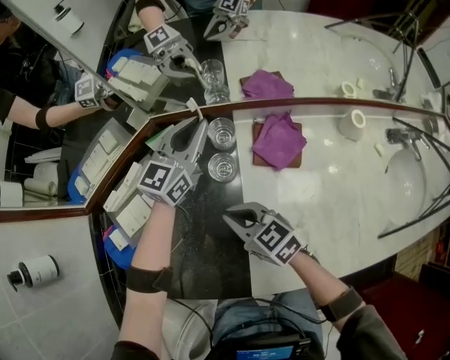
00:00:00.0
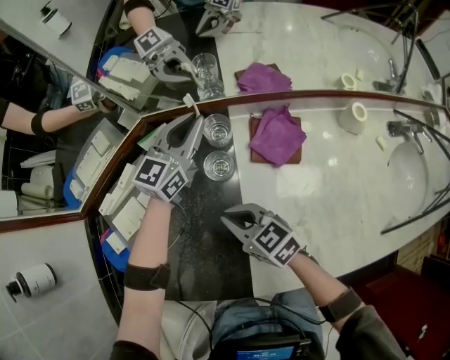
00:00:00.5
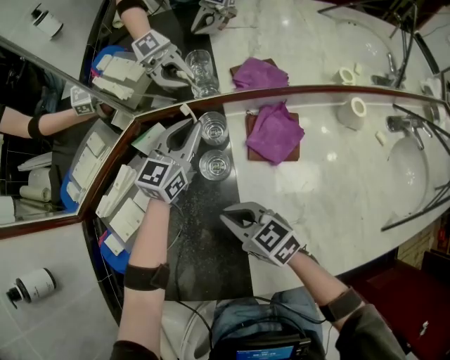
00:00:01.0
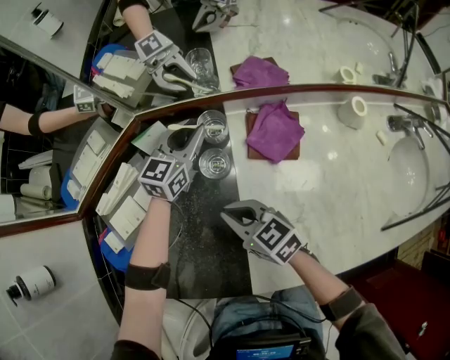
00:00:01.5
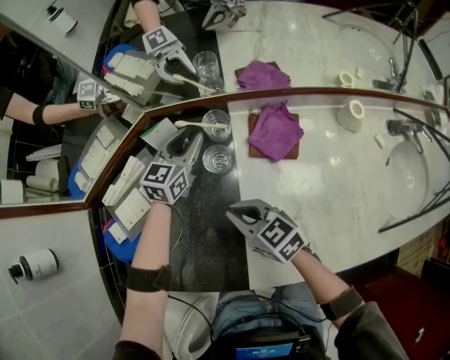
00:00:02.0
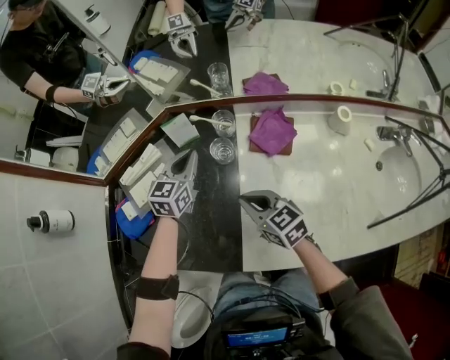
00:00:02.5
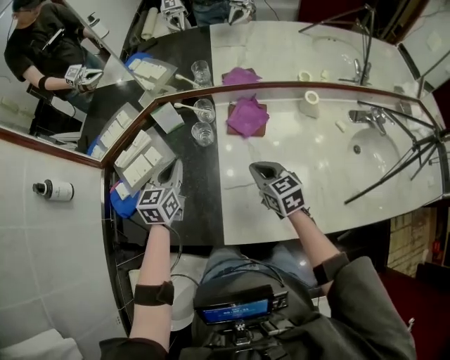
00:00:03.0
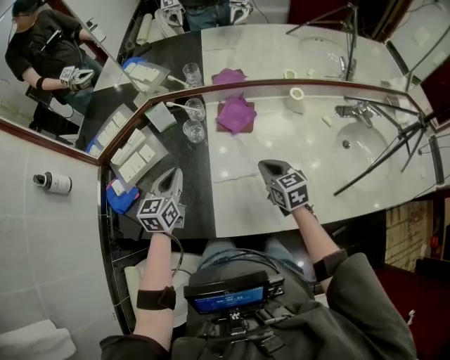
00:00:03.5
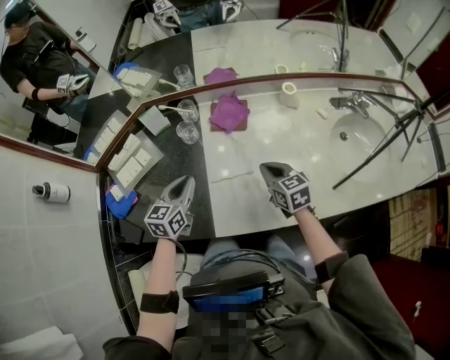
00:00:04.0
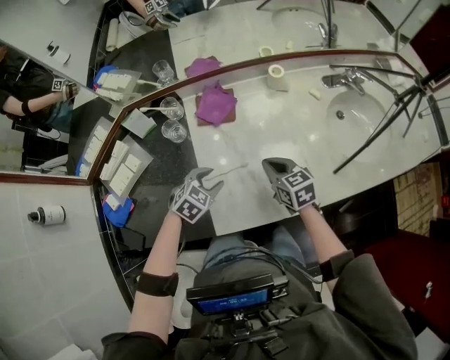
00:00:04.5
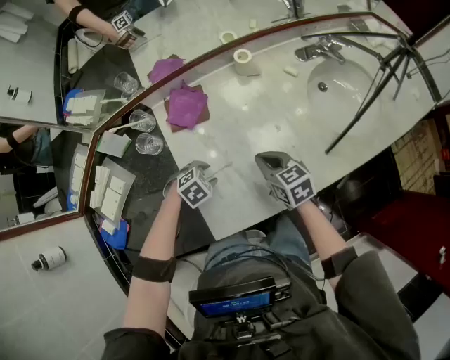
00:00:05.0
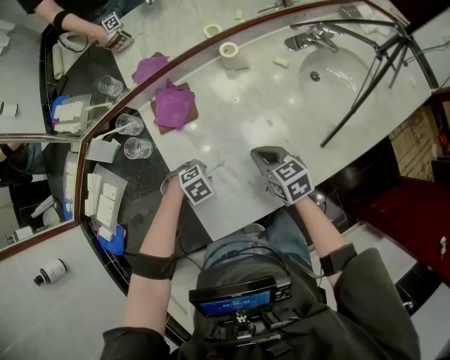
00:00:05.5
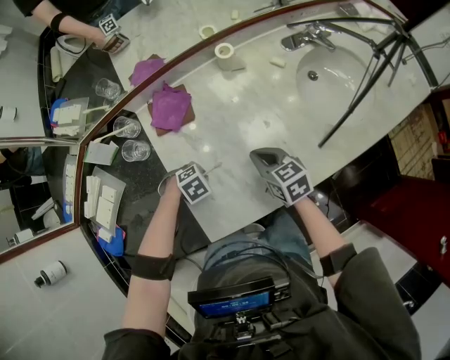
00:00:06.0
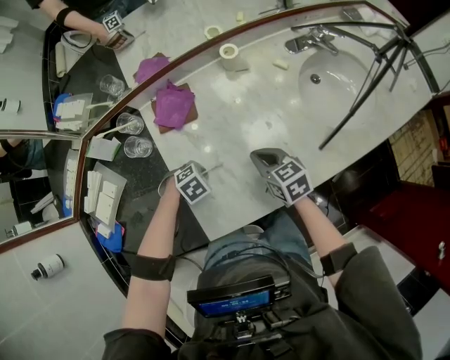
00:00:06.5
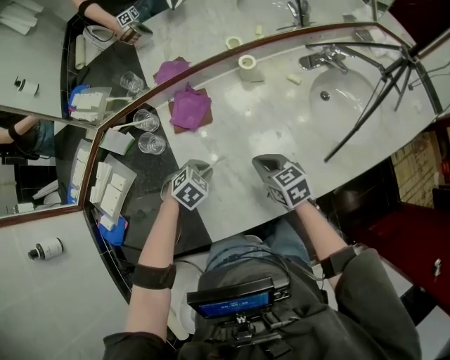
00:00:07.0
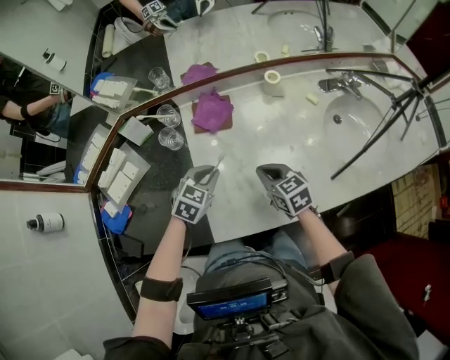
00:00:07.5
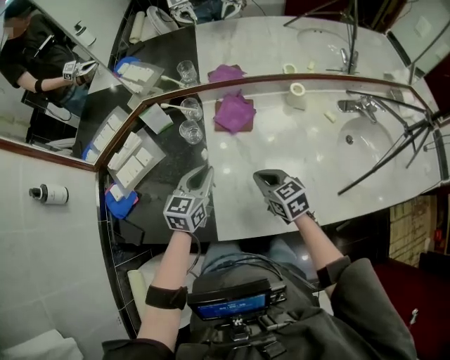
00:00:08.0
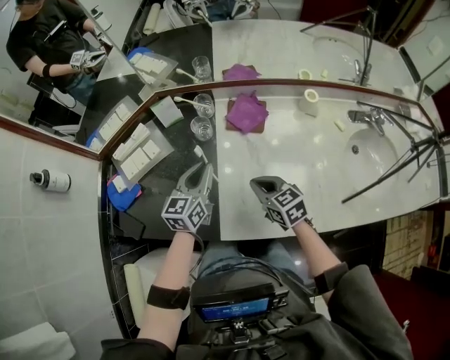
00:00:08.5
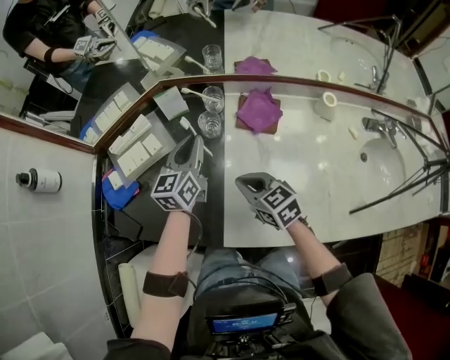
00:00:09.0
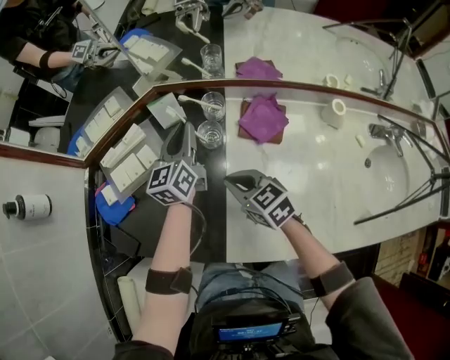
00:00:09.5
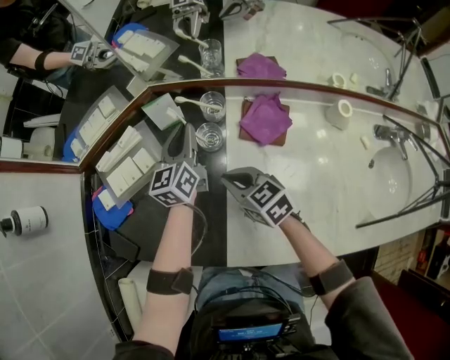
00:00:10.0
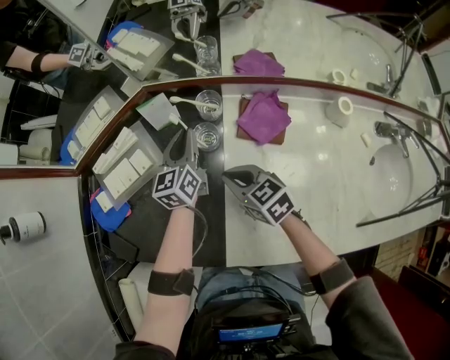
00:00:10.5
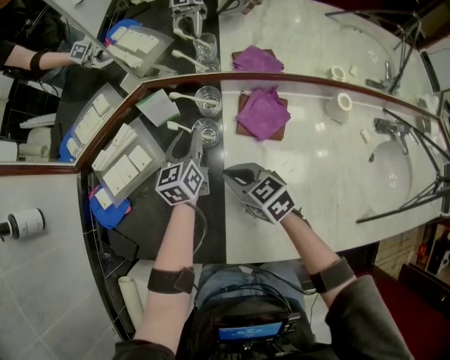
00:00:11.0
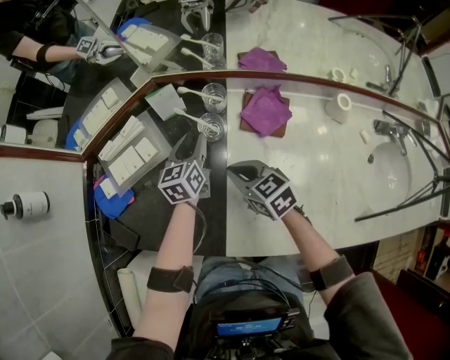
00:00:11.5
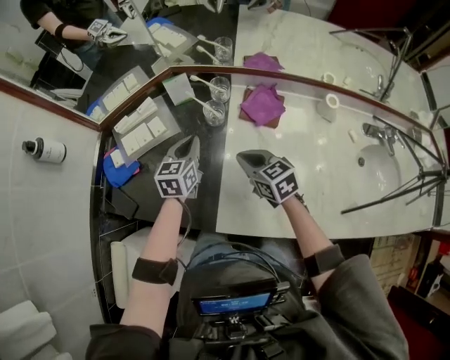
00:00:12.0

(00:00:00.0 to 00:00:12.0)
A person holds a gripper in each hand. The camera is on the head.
00:00:00.0 - 00:00:02.0: The left gripper is displaced downward by some 10 cm, and opens up.
00:00:02.0 - 00:00:04.0: The right gripper heads to the right and backward, covering approximately 25 cm, and changes its angle by roughly 30 degrees. The left gripper heads backward, covering some 30 cm, and closes.
00:00:04.0 - 00:00:06.0: The right gripper shifts by about 10 cm. The left gripper heads downward, covering some 20 cm, tilts its fingers approximately 50 degrees downward, and opens, then closes again.
00:00:06.0 - 00:00:08.0: The left gripper is displaced upward by roughly 20 cm, and angles its fingers upward, by roughly 50 degrees. Meanwhile the right gripper ends up some 15 cm from where it was, and swivels about 20 degrees.
00:00:08.0 - 00:00:10.0: The right gripper travels forward and to the left by roughly 20 cm. Meanwhile the left gripper goes approximately 25 cm forward, and changes its angle by some 30 degrees.
00:00:10.0 - 00:00:12.0: The right gripper shifts some 5 cm backward, while the left gripper goes about 15 cm backward, swivels about 20 degrees, and opens and closes again.

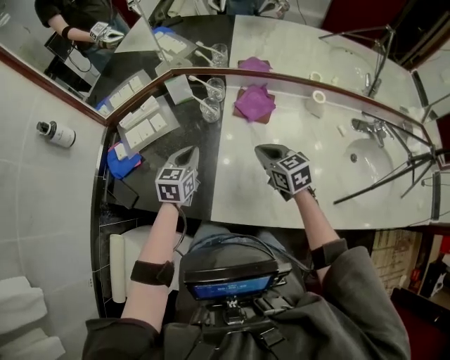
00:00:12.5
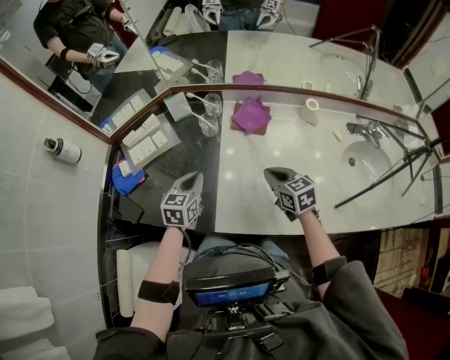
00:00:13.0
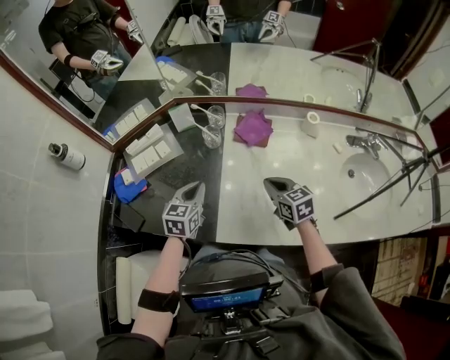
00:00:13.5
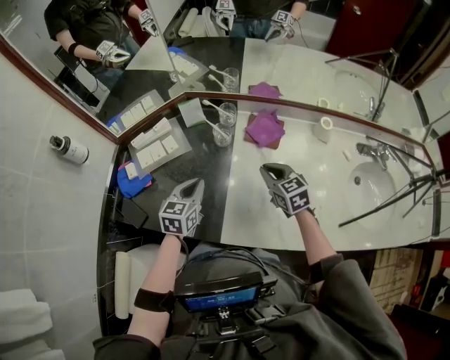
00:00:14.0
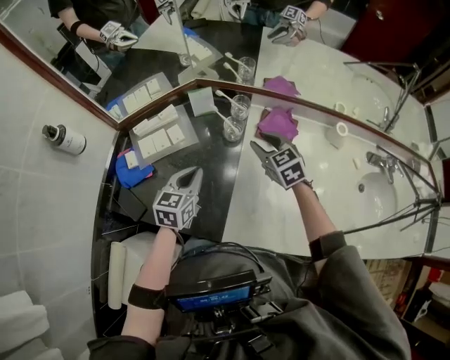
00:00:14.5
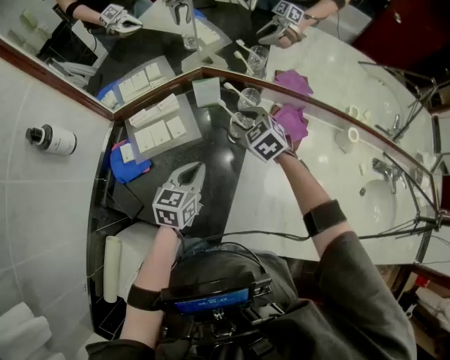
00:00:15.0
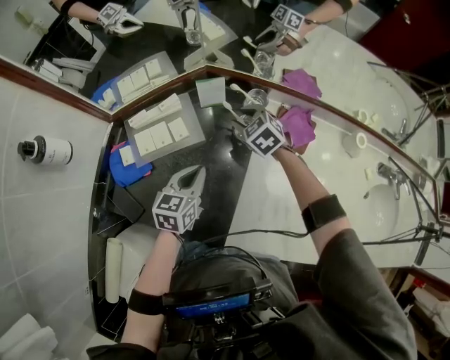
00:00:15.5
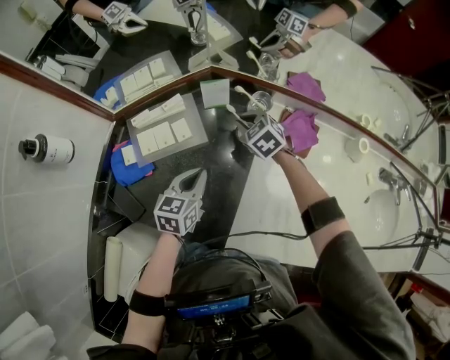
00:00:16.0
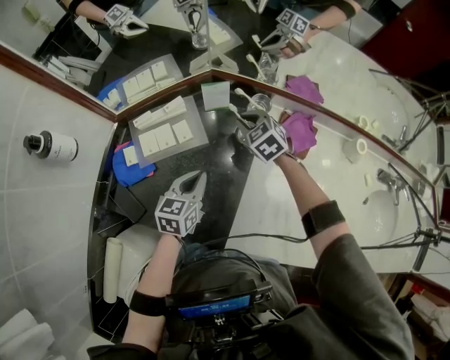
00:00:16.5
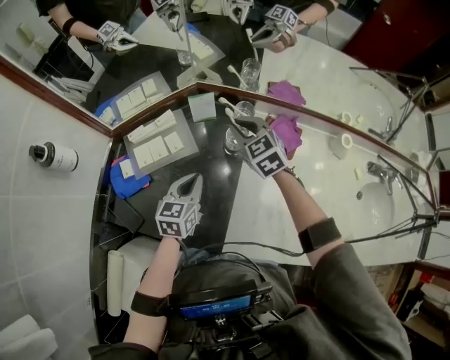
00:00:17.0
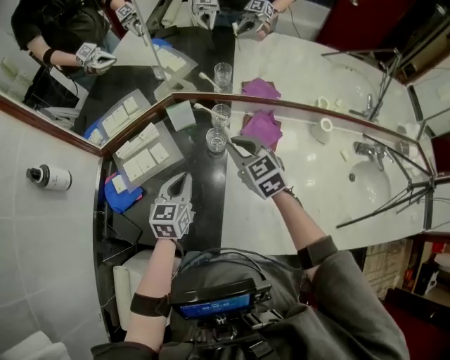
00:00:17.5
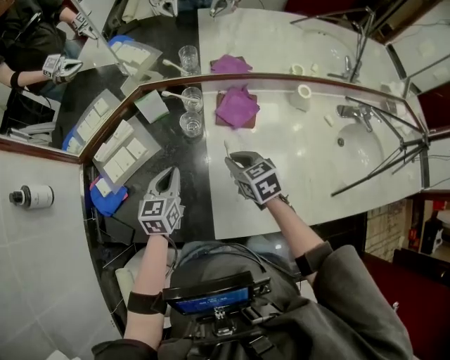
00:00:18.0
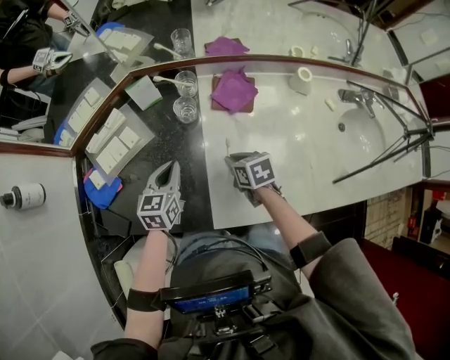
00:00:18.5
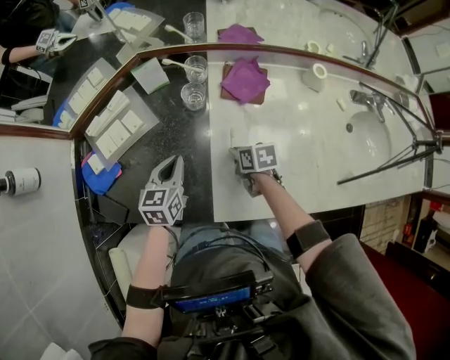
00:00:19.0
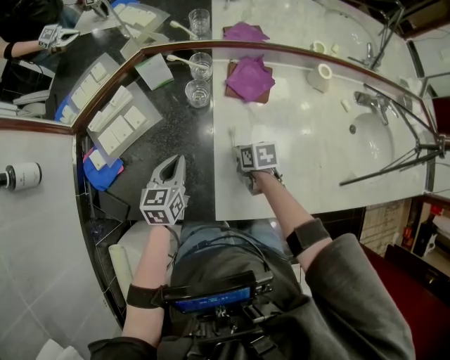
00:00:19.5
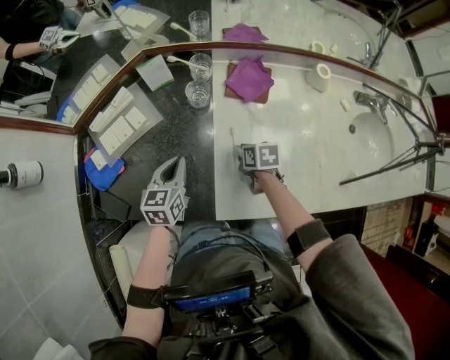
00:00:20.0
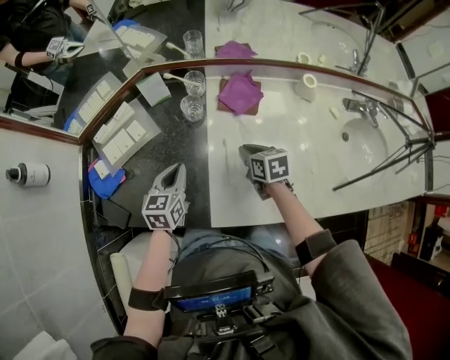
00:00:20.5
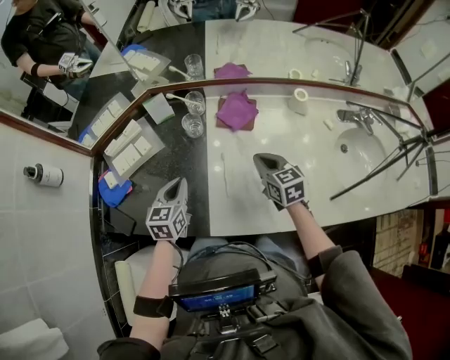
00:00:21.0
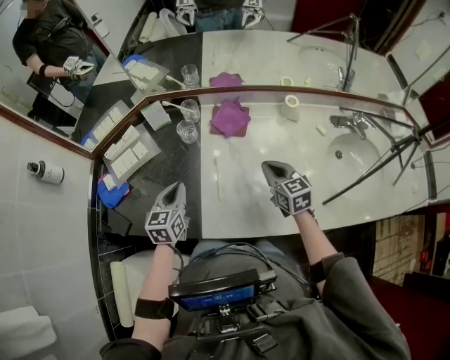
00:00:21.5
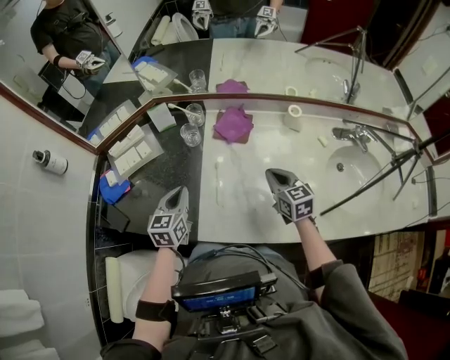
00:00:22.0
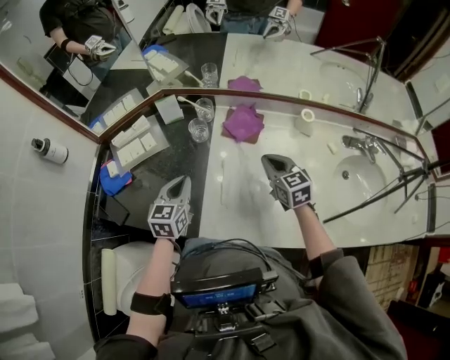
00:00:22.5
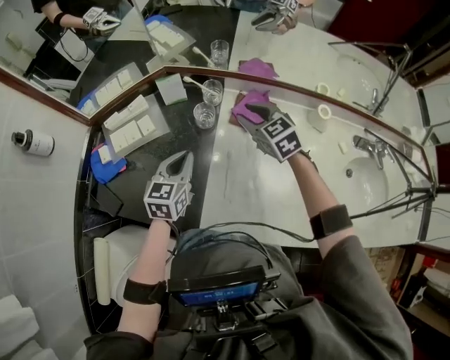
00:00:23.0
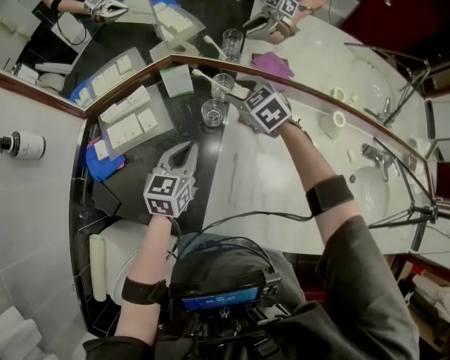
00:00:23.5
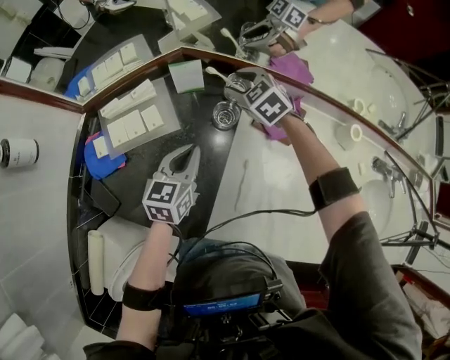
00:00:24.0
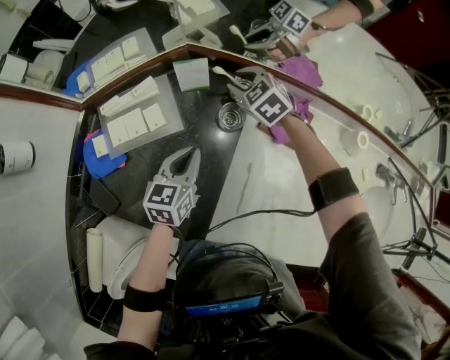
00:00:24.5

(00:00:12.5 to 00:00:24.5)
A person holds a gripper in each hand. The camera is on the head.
00:00:12.5 - 00:00:14.5: The left gripper heads to the left, covering some 5 cm; the right gripper heads forward and to the left, covering roughly 15 cm, and opens.
00:00:14.5 - 00:00:16.5: The left gripper moves downward, about 5 cm, while the right gripper goes approximately 15 cm forward, to the left and downward, and closes up.
00:00:16.5 - 00:00:18.5: The left gripper shifts approximately 5 cm to the right; the right gripper moves backward and to the right, about 25 cm, and twists roughly 50 degrees clockwise, seen from behind.
00:00:18.5 - 00:00:20.5: The right gripper moves roughly 5 cm downward and comes back.
00:00:20.5 - 00:00:22.5: The left gripper moves upward, approximately 5 cm, while the right gripper is displaced upward and to the right by about 15 cm, and turns by roughly 30 degrees.
00:00:22.5 - 00:00:24.5: The left gripper shifts approximately 15 cm forward and downward; the right gripper moves forward and to the left, roughly 40 cm, turns by about 40 degrees, and opens up.

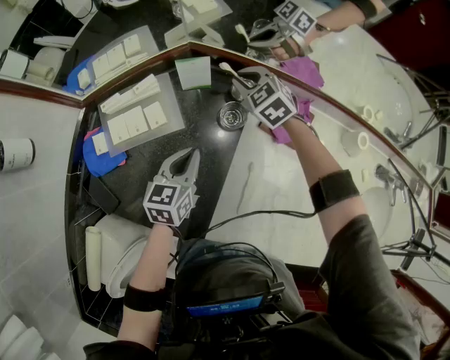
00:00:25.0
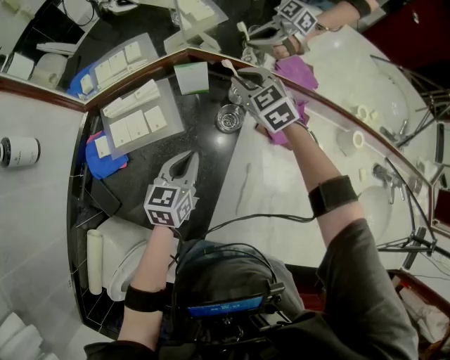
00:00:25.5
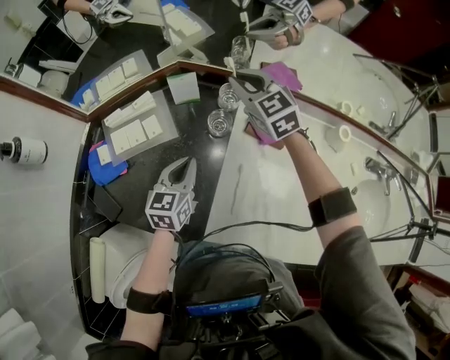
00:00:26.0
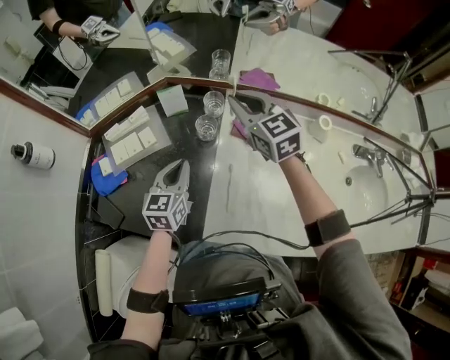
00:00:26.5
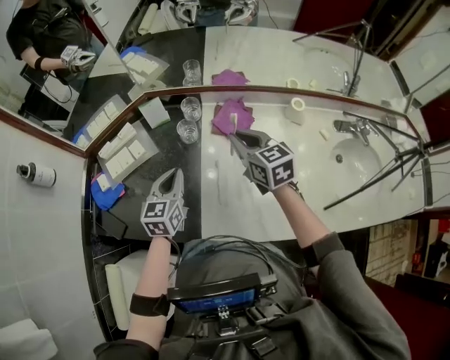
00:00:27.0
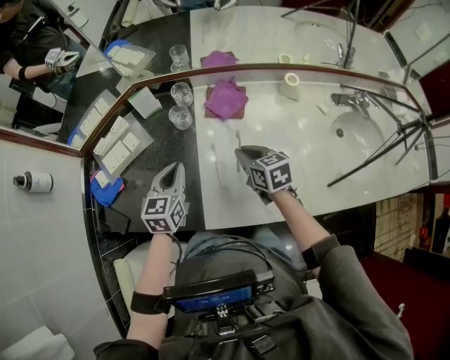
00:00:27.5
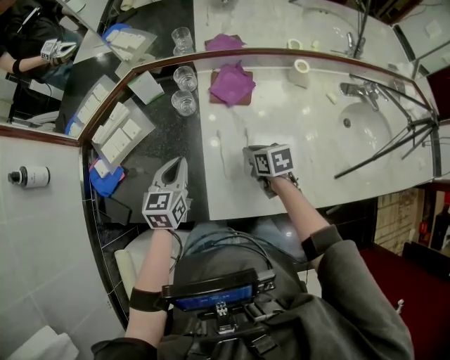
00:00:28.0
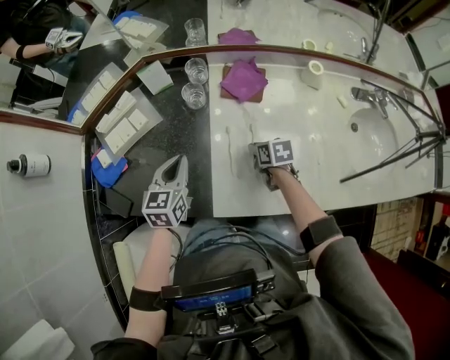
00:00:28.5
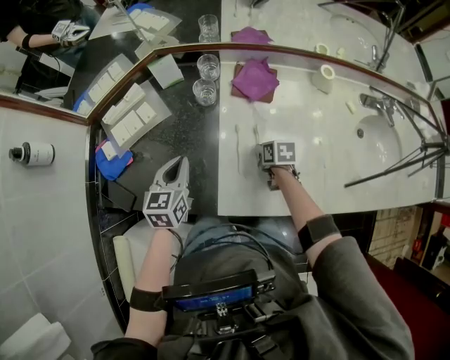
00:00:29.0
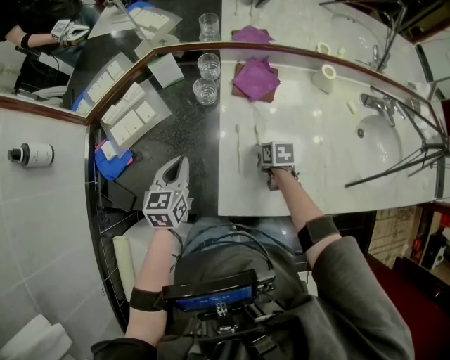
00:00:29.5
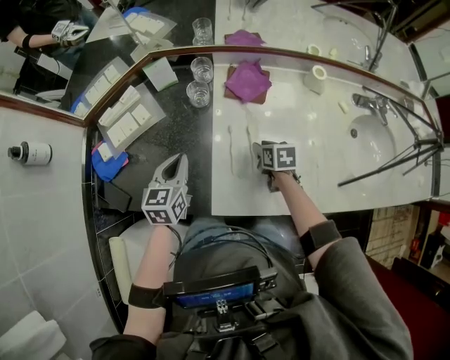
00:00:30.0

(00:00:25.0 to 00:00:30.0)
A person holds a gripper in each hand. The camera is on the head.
00:00:25.0 - 00:00:27.5: The left gripper heads backward, upward and to the right, covering approximately 15 cm. Meanwhile the right gripper travels backward and to the right by some 35 cm, and twists approximately 50 degrees clockwise, seen from behind.
00:00:27.5 - 00:00:30.0: The right gripper shifts approximately 15 cm downward, and rotates some 20 degrees. The left gripper is displaced to the left by approximately 5 cm.
